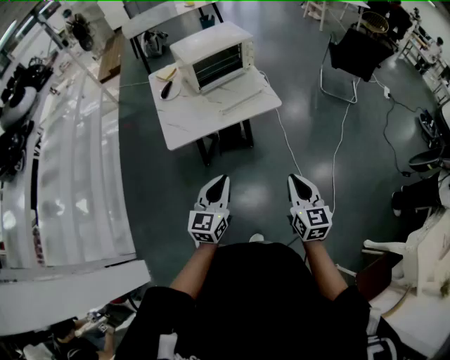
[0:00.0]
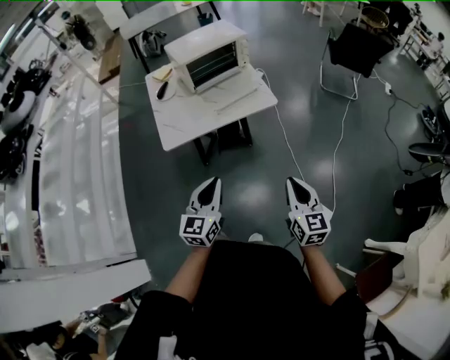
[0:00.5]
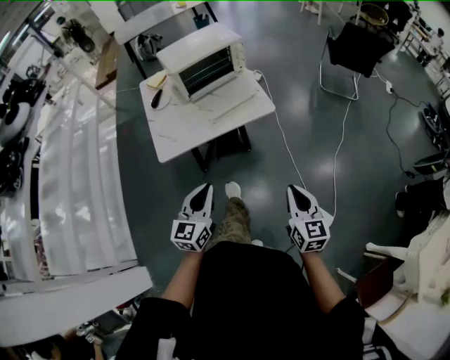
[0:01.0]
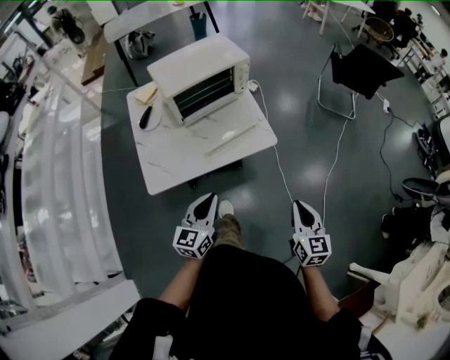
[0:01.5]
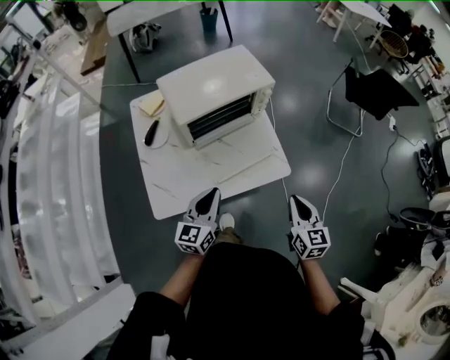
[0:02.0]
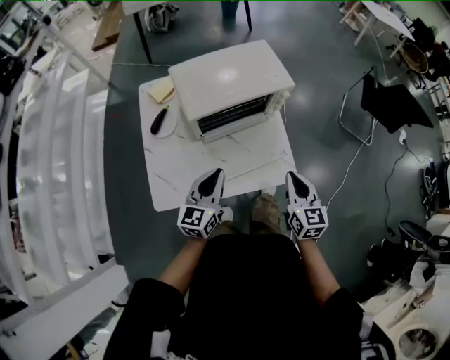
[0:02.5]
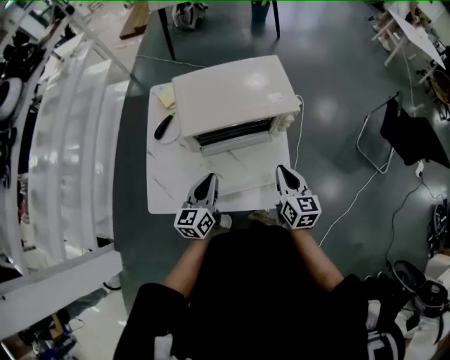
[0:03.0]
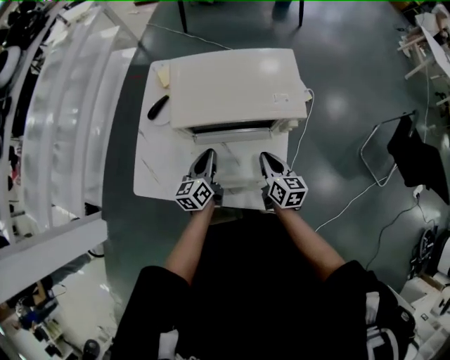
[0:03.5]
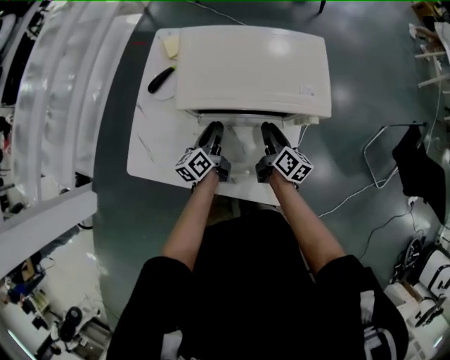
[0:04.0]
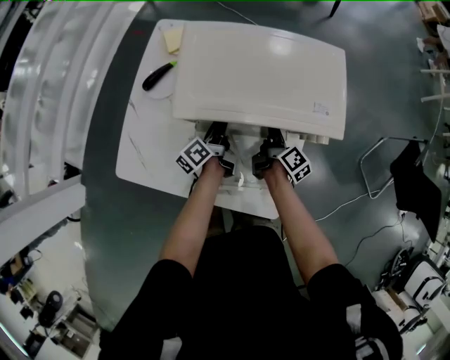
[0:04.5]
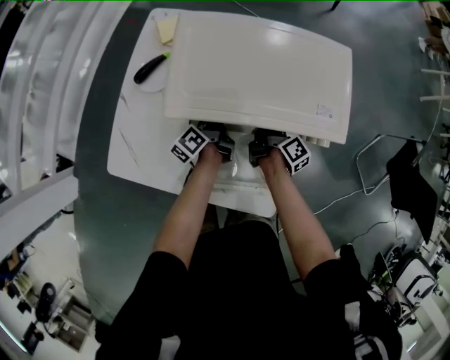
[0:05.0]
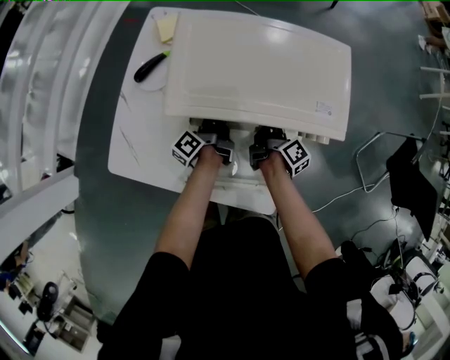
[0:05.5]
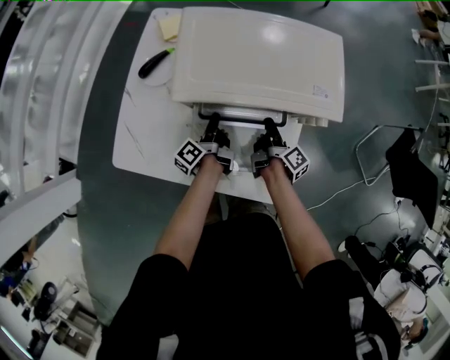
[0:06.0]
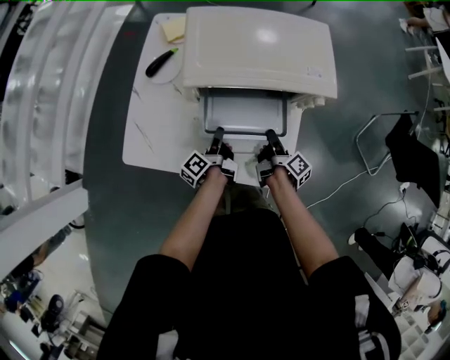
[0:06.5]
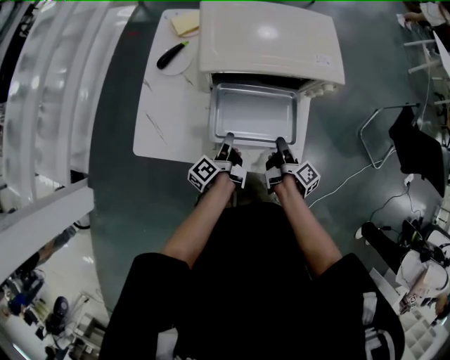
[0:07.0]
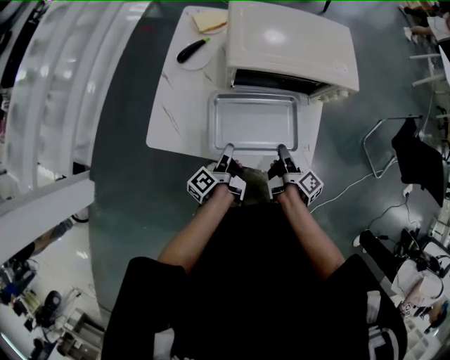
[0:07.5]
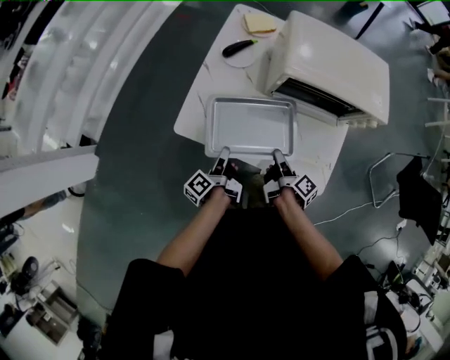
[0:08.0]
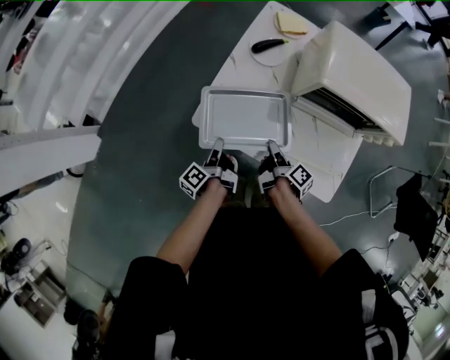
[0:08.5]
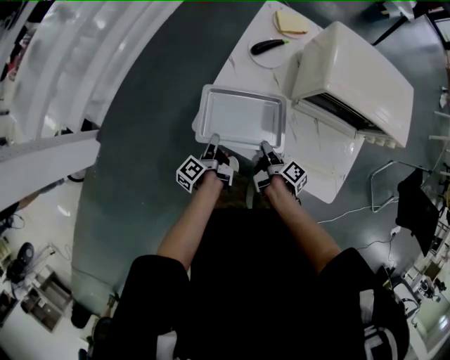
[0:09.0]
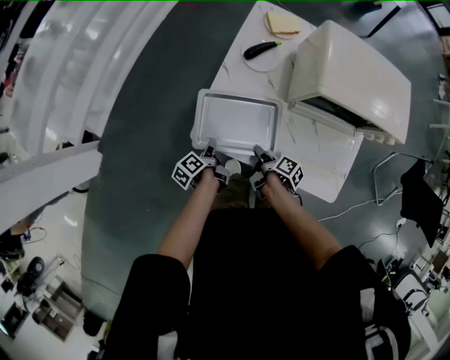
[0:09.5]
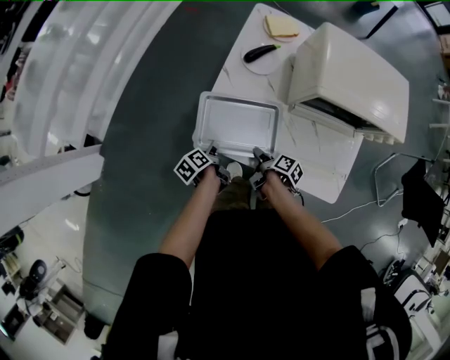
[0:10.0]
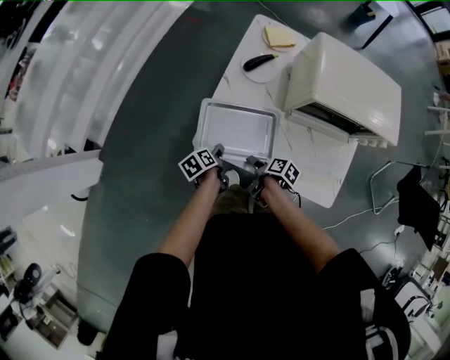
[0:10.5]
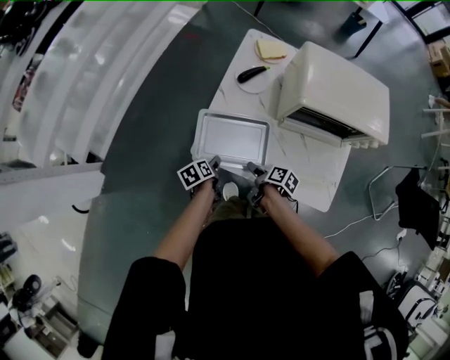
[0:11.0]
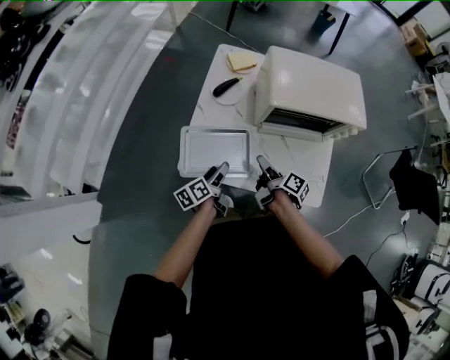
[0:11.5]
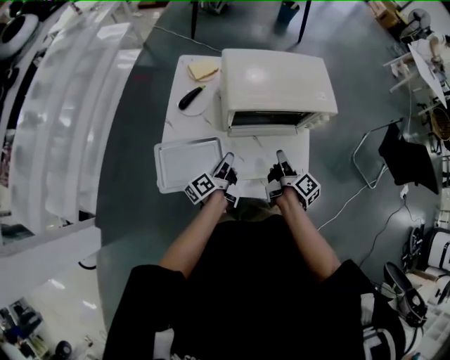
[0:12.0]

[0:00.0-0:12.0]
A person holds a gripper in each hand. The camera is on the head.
0:00.0 to 0:02.0: The right gripper ends up approximately 40 cm from where it was.
0:02.0 to 0:04.0: The right gripper moves roughly 40 cm, and turns by approximately 40 degrees.
0:04.0 to 0:06.0: The right gripper heads downward, covering some 5 cm, and changes its angle by about 30 degrees.
0:06.0 to 0:08.0: The right gripper ends up about 25 cm from where it was.
0:08.0 to 0:10.0: The right gripper shifts by some 20 cm, and swivels approximately 30 degrees.
0:10.0 to 0:12.0: The right gripper shifts by approximately 35 cm, tips its fingers upward by about 30 degrees, and opens and closes again.

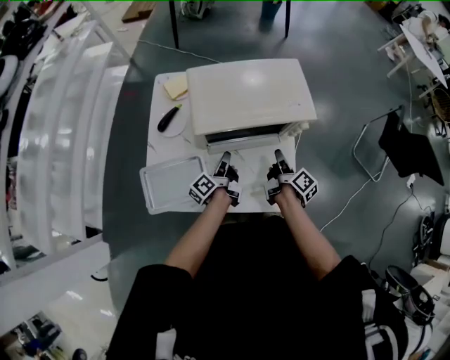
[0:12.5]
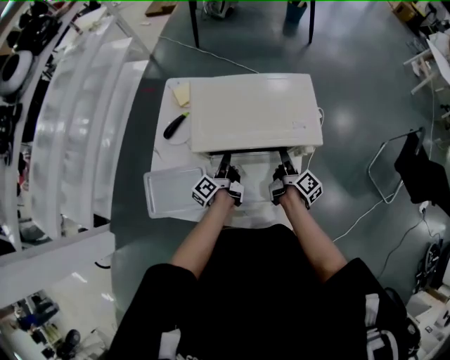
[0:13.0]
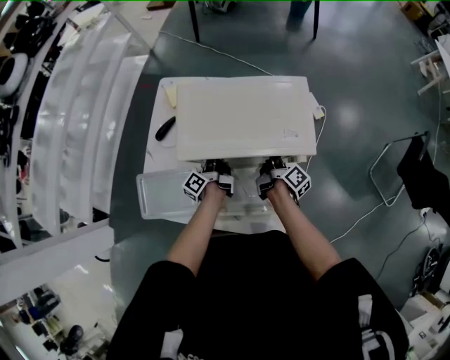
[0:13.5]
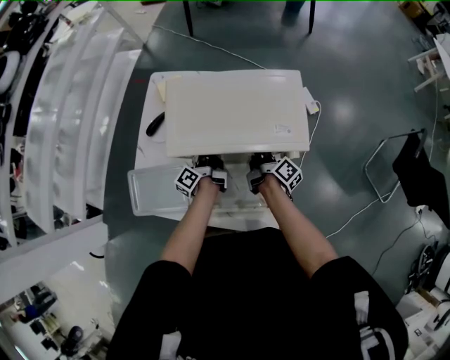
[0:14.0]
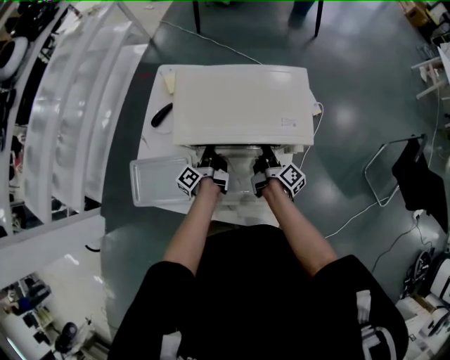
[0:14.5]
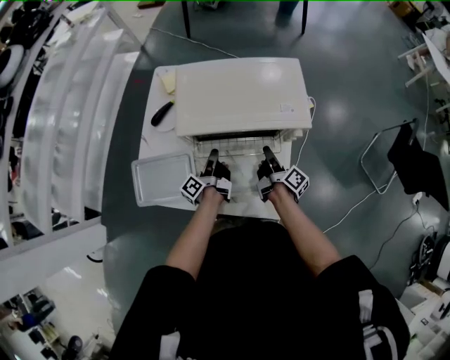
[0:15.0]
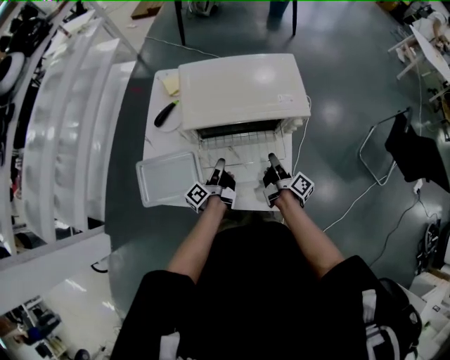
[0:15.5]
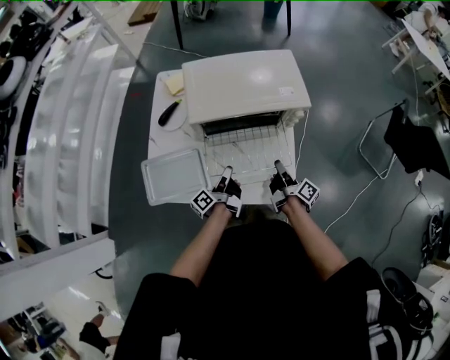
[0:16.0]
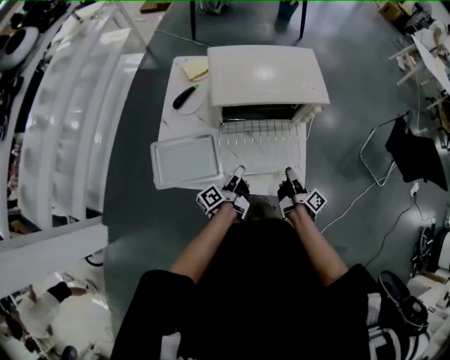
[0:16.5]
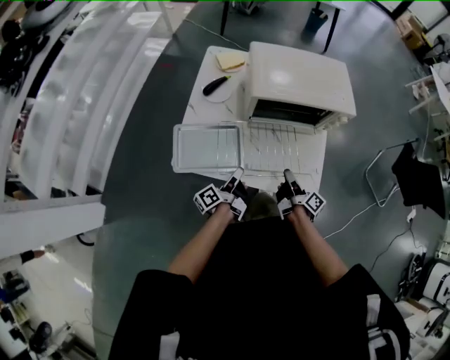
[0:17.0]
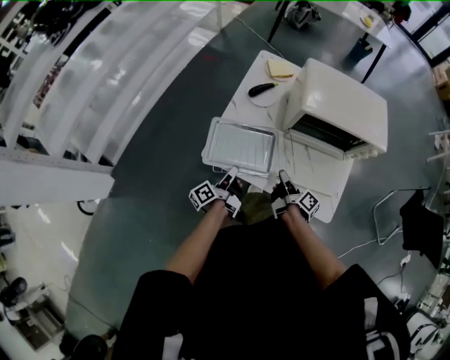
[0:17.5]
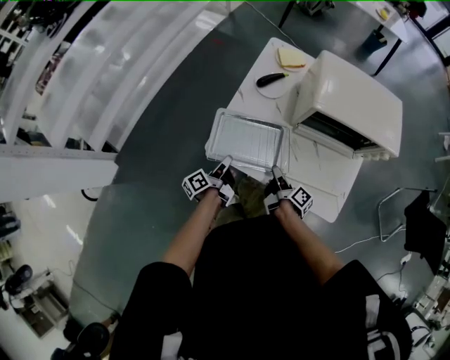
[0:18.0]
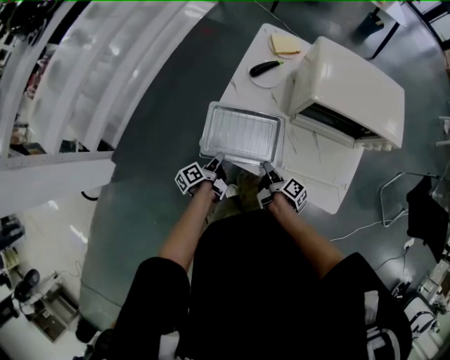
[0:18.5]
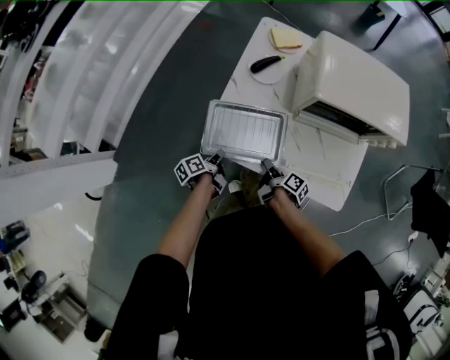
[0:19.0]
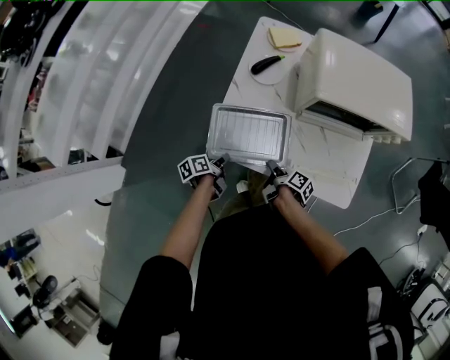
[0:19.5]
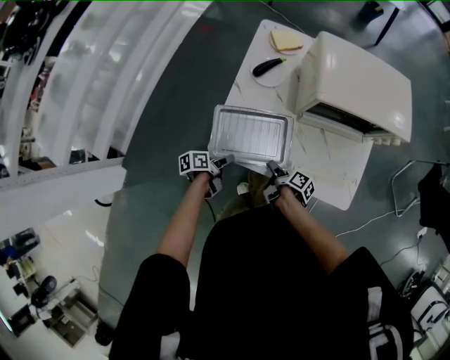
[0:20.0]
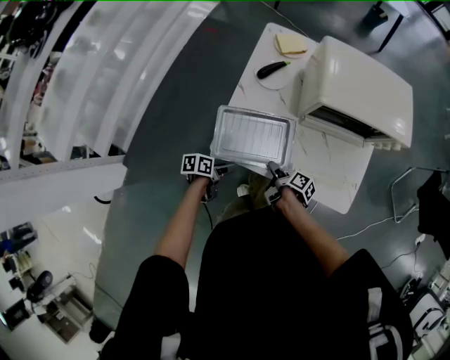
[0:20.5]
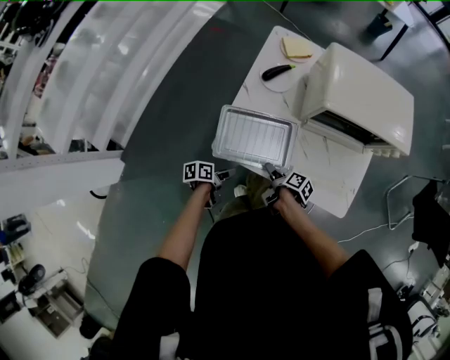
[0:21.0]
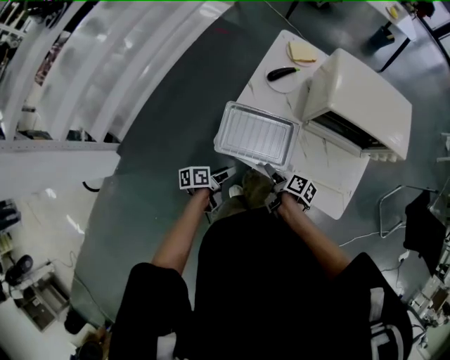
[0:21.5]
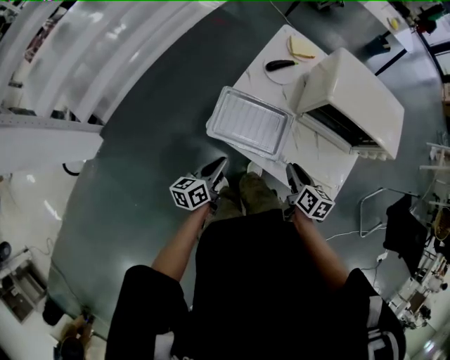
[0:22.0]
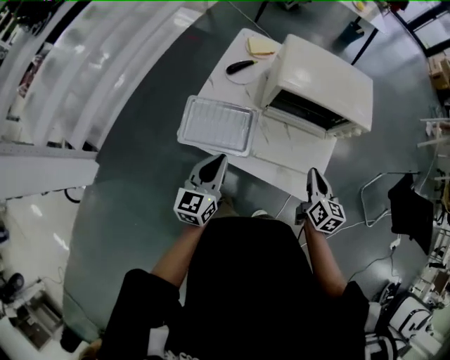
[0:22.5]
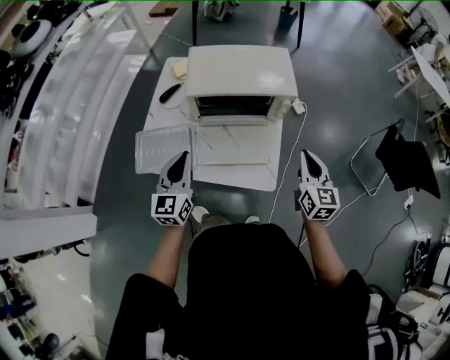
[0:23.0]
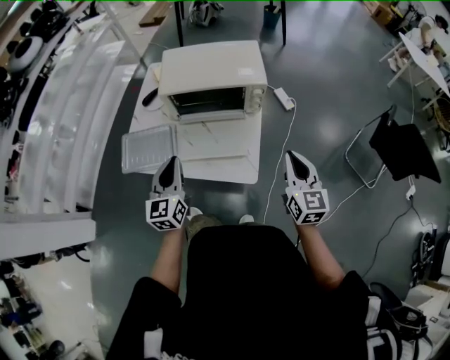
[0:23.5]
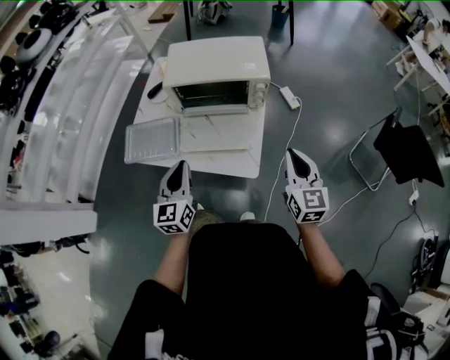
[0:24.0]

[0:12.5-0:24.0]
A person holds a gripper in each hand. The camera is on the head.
0:12.5 to 0:14.5: The right gripper changes place by some 10 cm, and opens, then closes once more.
0:14.5 to 0:16.5: The right gripper changes place by some 25 cm.
0:16.5 to 0:18.5: The right gripper moves some 35 cm, and turns by approximately 30 degrees.
0:20.0 to 0:22.0: The right gripper heads upward, covering some 15 cm, rolls counterclockwise, seen from behind, by some 60 degrees, and opens, then closes again.
0:22.0 to 0:24.0: The right gripper ends up roughly 50 cm from where it was, and changes its angle by about 40 degrees.

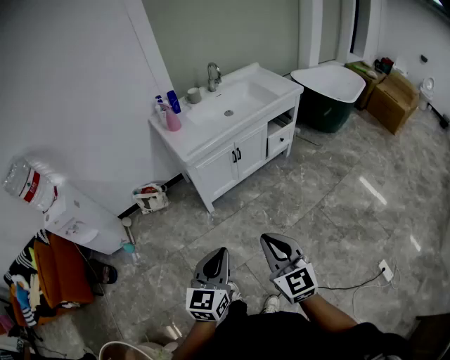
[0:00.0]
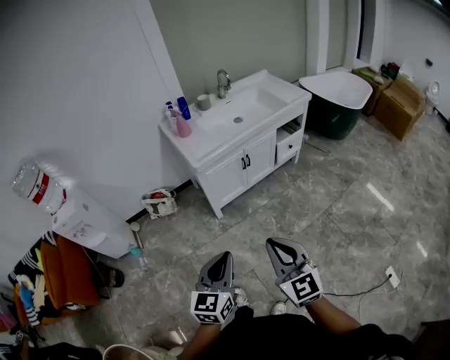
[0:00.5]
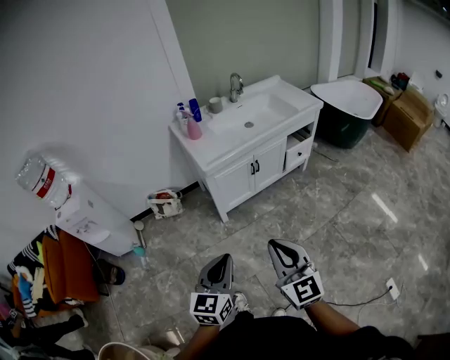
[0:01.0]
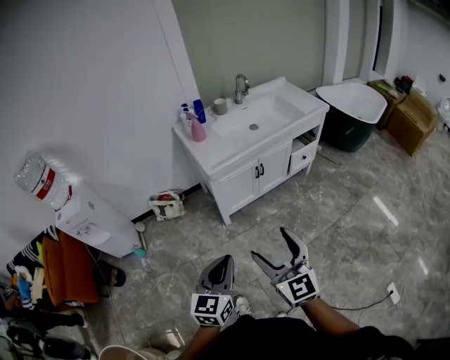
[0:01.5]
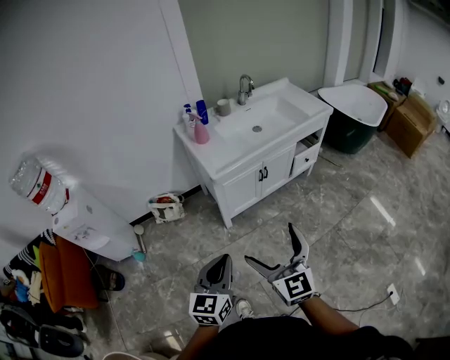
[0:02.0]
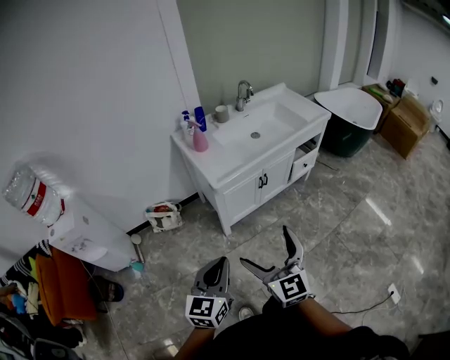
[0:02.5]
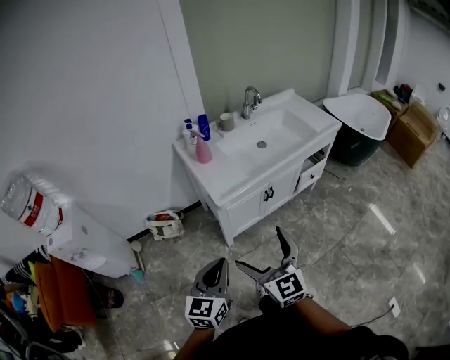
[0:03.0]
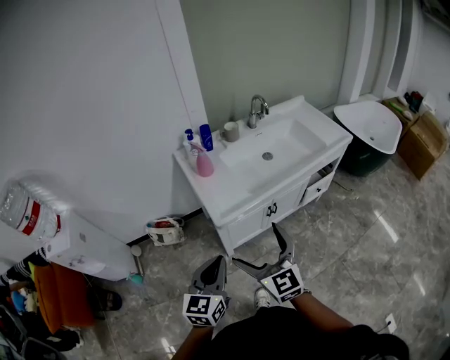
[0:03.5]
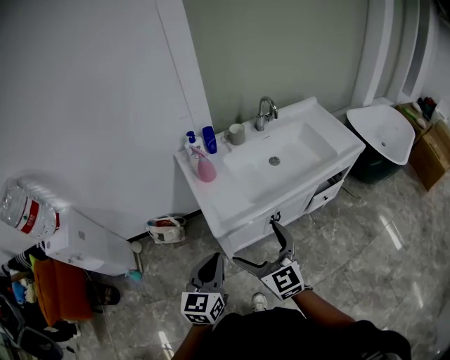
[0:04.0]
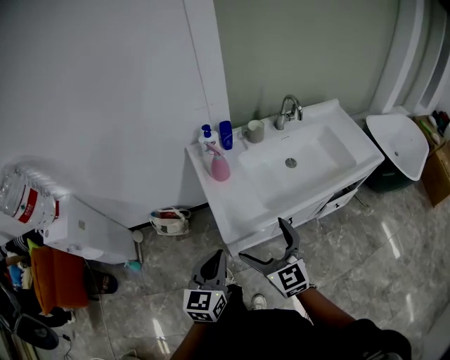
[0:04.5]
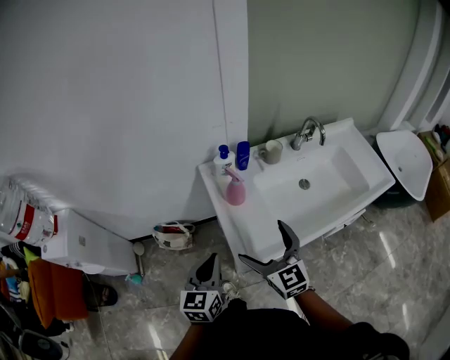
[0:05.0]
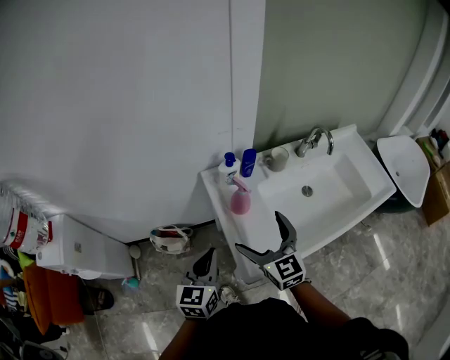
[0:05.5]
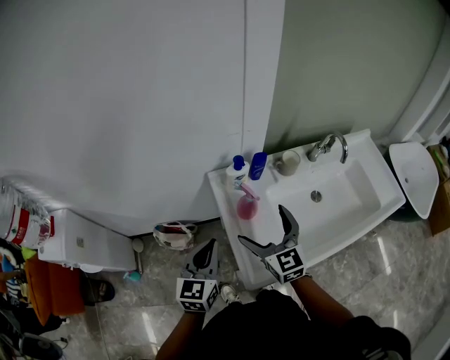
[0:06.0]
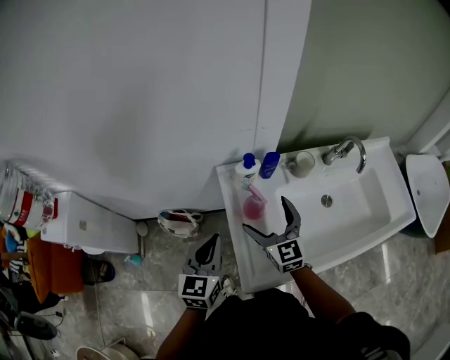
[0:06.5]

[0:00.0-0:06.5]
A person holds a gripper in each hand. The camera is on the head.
0:00.0 to 0:02.0: Both grippers travel together forward and to the left, about 15 cm. The right gripper opens up.
0:02.0 to 0:04.5: The grippers both shift forward by about 40 cm.
0:04.5 to 0:06.5: Both grippers move forward, roughly 30 cm.
